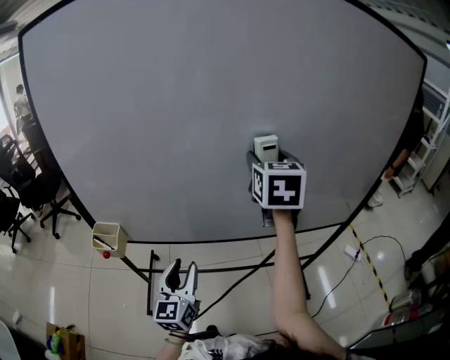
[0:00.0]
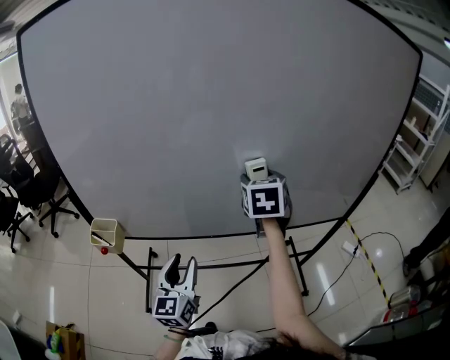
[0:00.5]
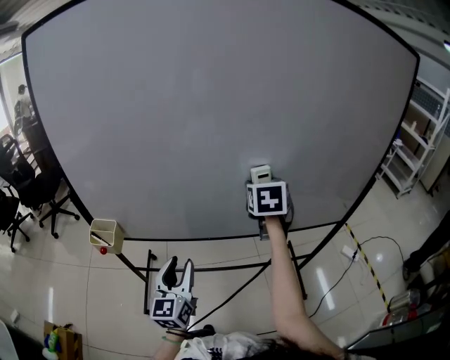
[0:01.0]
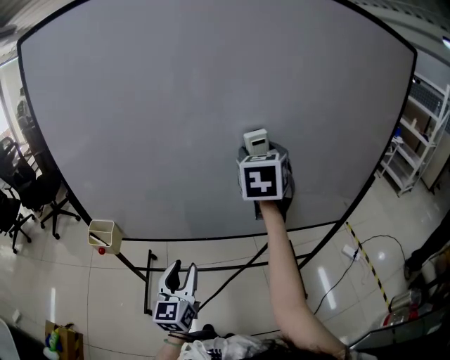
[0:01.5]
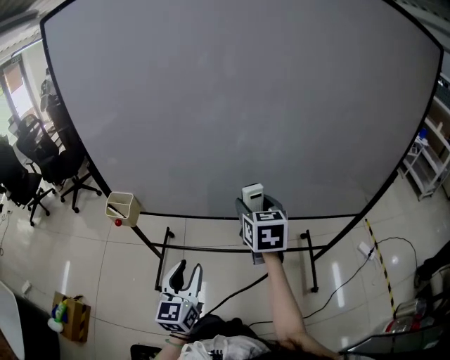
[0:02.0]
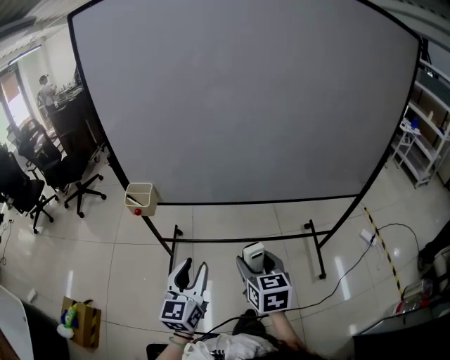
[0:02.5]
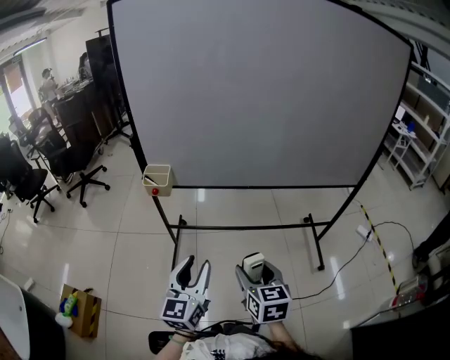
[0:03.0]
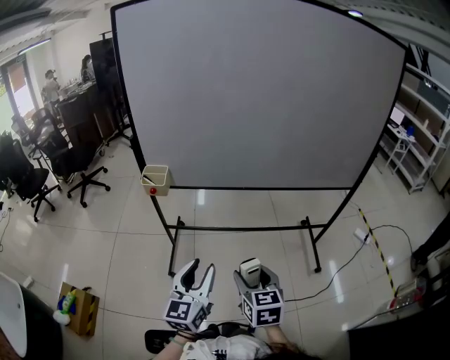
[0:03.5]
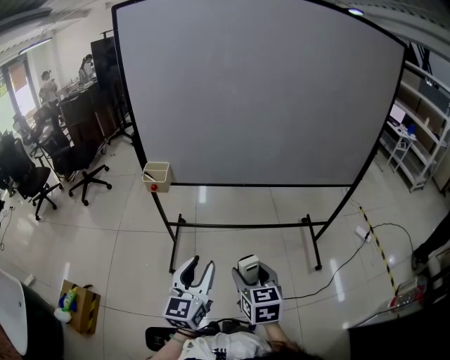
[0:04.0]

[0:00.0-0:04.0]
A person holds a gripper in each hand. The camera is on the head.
0:00.0 to 0:02.0: The left gripper heads backward, covering approximately 10 cm; the right gripper moves up and down over about 20 cm, changing direction 2 times.
0:02.0 to 0:04.0: The right gripper travels backward by some 40 cm. The left gripper heads backward, covering about 20 cm.

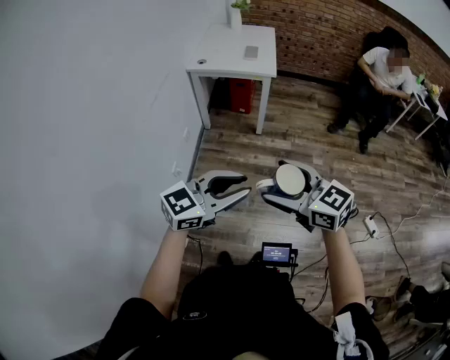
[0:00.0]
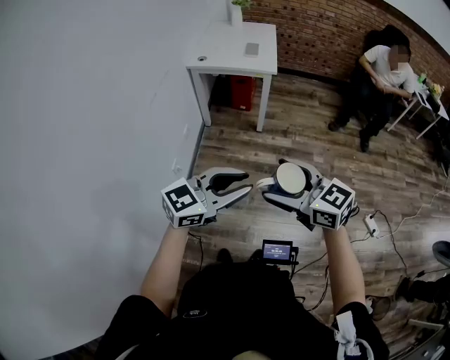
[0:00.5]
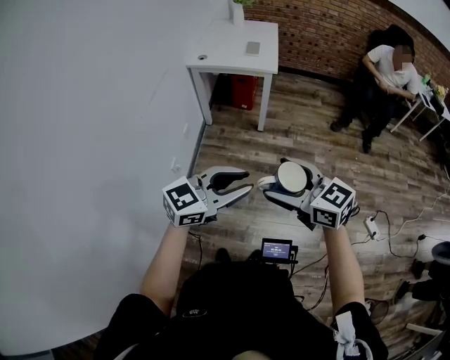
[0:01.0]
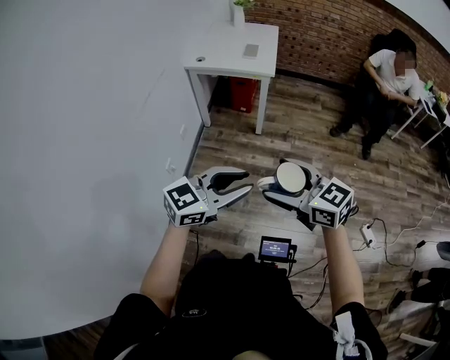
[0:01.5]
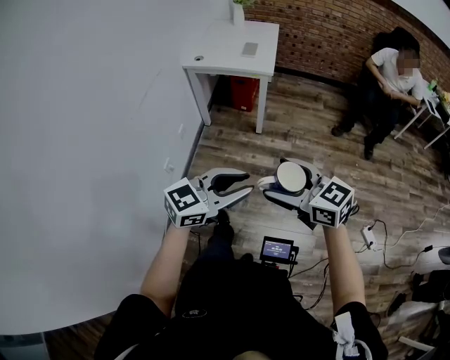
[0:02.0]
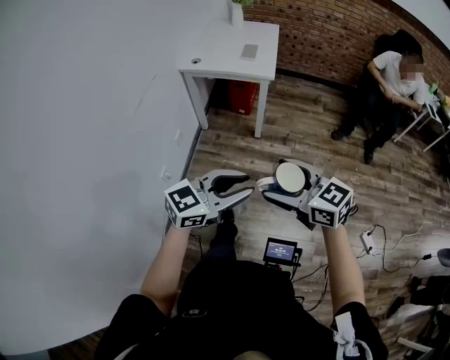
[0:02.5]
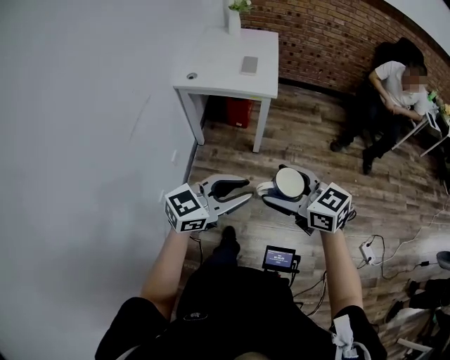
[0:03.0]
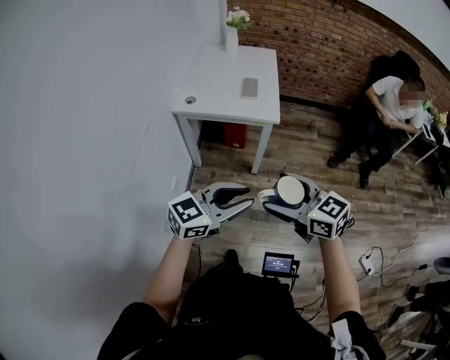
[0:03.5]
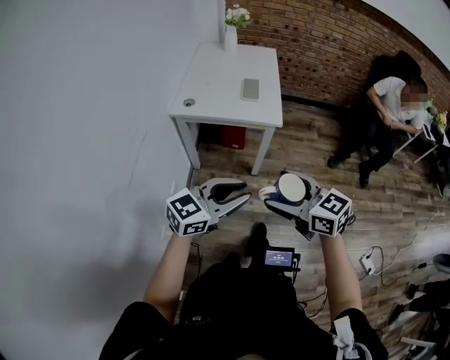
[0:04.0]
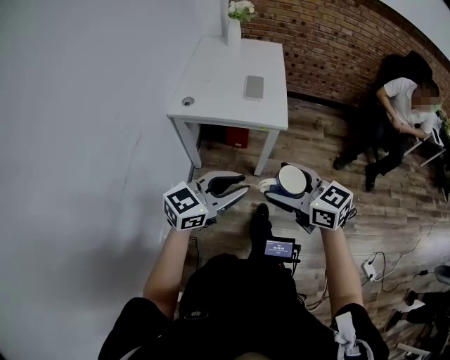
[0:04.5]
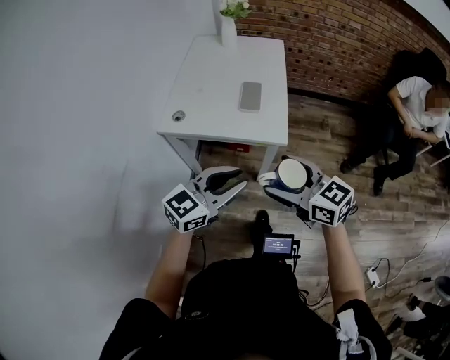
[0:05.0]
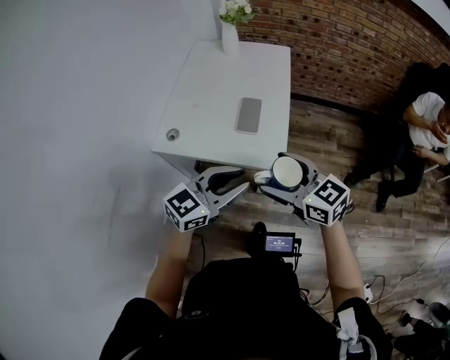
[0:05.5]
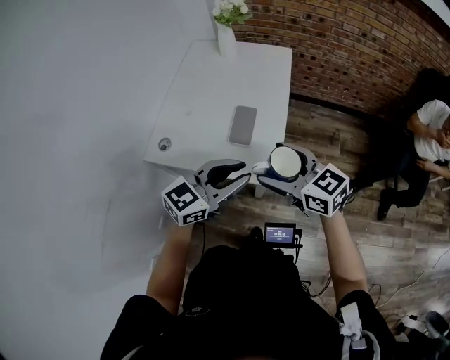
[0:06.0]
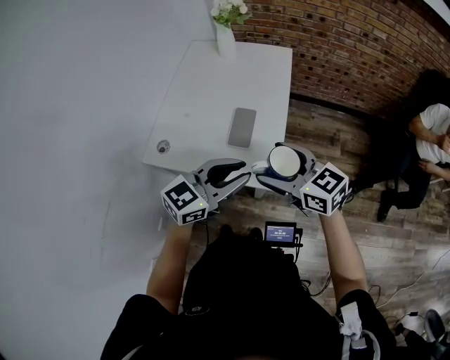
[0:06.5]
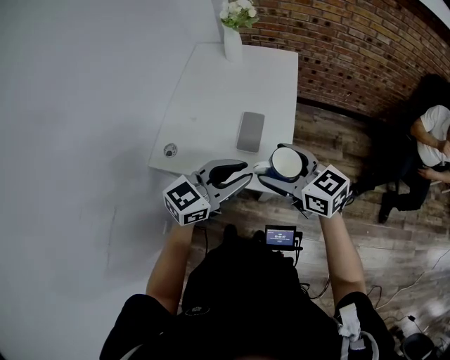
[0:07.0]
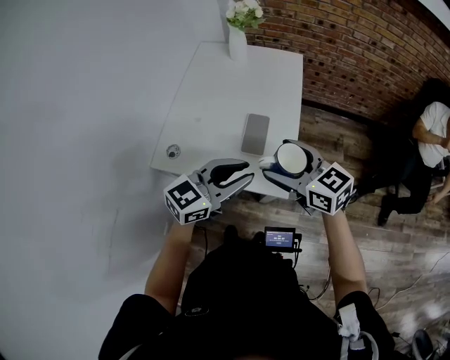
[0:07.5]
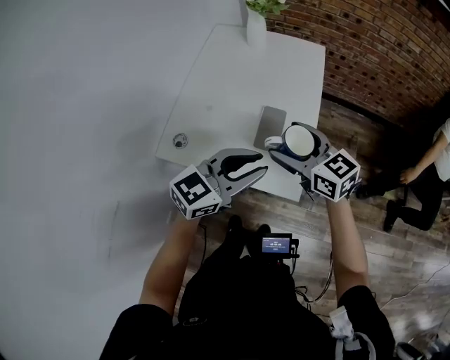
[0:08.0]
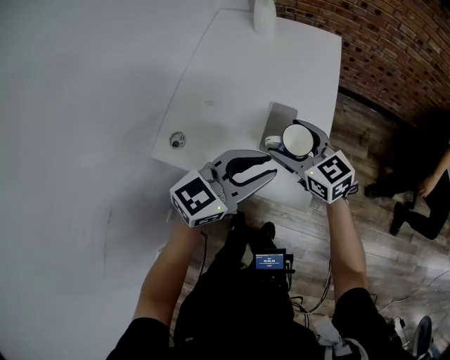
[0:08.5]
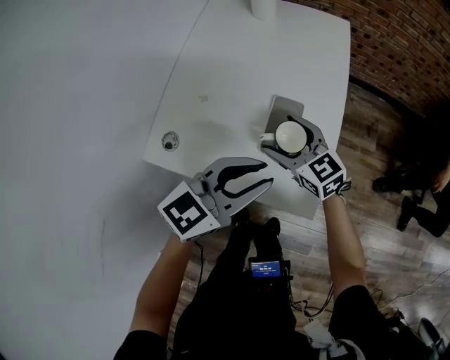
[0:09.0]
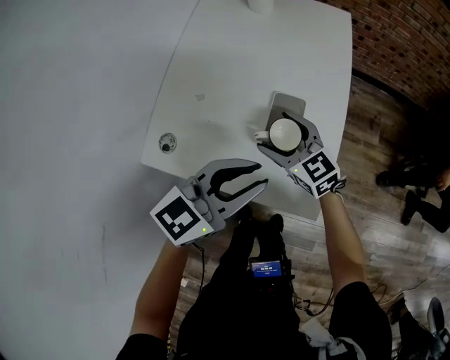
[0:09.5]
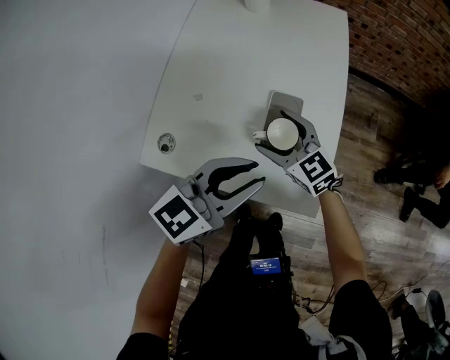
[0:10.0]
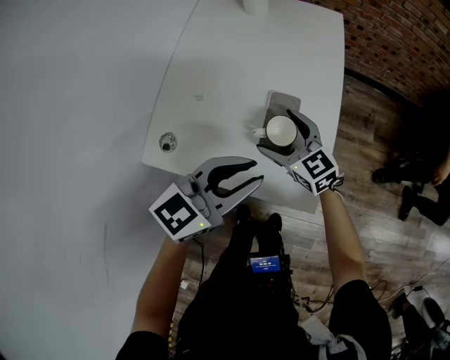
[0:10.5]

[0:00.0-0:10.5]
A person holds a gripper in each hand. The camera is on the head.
0:00.0 to 0:02.0: The two grippers go some 10 cm to the right.
0:02.0 to 0:04.0: Both grippers travel together forward and to the left, some 35 cm.
0:04.0 to 0:06.5: Both grippers are carried forward, approximately 40 cm.
0:06.5 to 0:08.5: The left gripper heads forward and to the left, covering approximately 10 cm; the right gripper moves forward, downward and to the left, roughly 20 cm.
0:08.5 to 0:10.5: The left gripper ends up some 5 cm from where it was, while the right gripper is displaced downward and forward by some 10 cm.

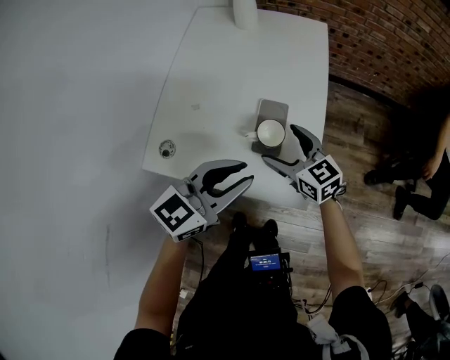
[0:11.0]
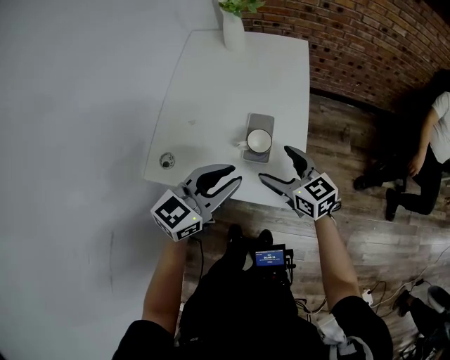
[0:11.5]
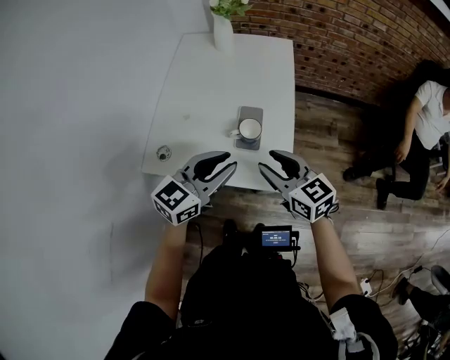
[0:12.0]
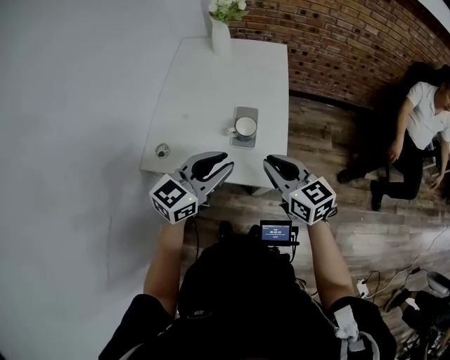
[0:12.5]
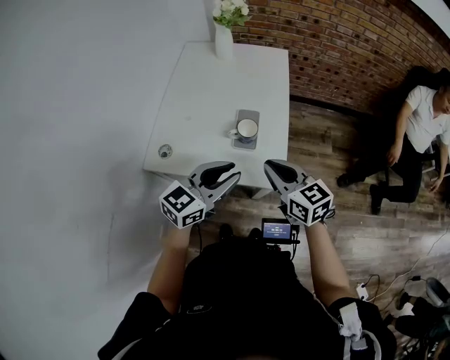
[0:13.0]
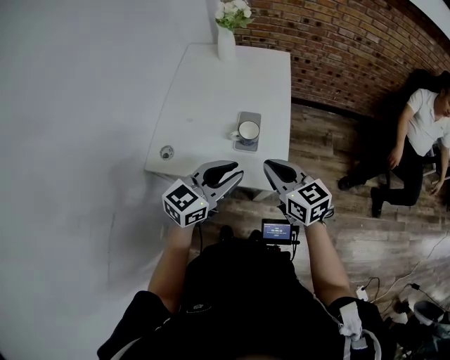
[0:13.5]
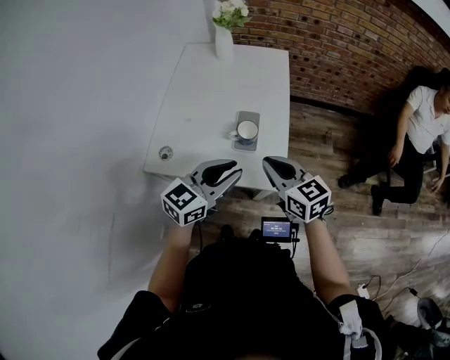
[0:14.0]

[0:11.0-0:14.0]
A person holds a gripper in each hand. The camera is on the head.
0:11.0 to 0:12.5: The right gripper moves upward and backward, about 20 cm, and closes. The left gripper moves upward and backward, about 10 cm.
0:12.5 to 0:14.0: The grippers stay close to where they were, moving slightly.

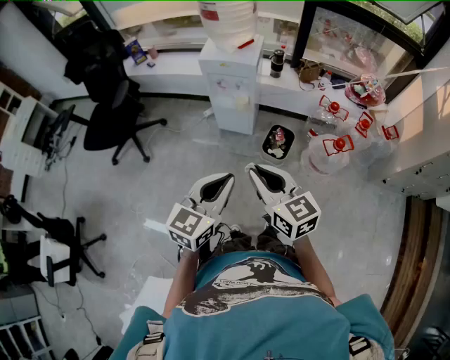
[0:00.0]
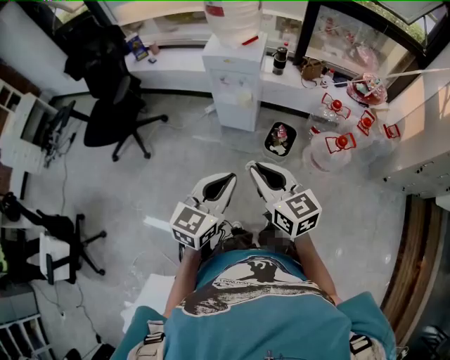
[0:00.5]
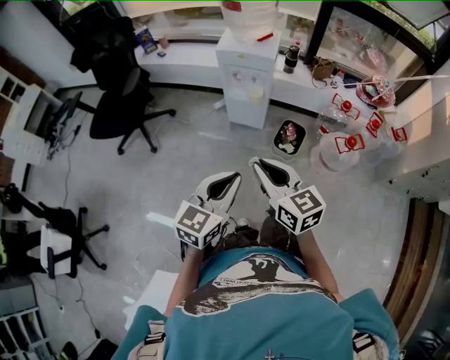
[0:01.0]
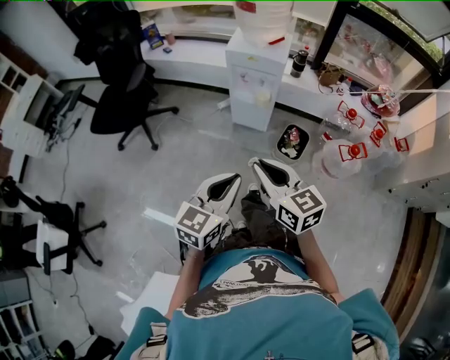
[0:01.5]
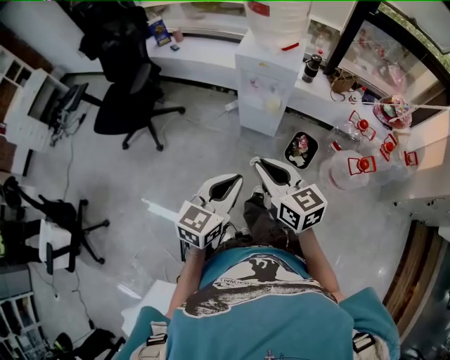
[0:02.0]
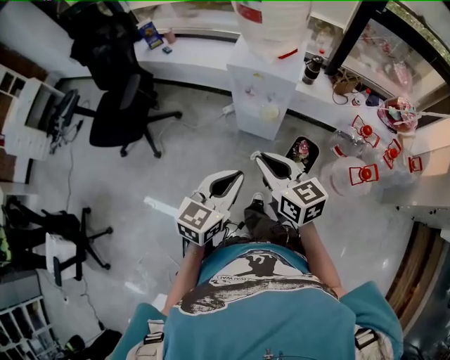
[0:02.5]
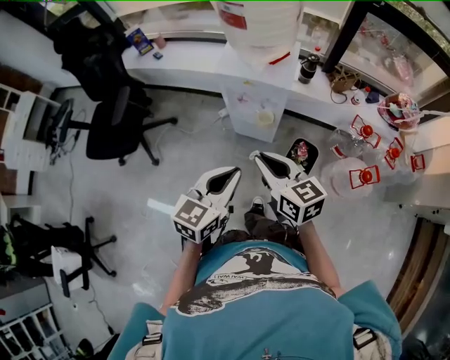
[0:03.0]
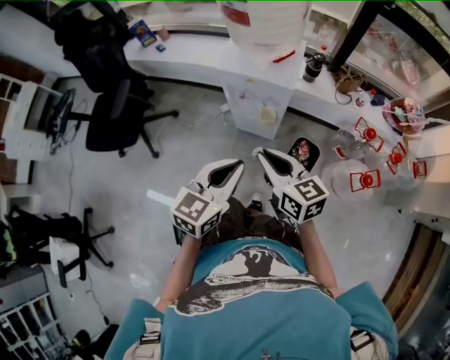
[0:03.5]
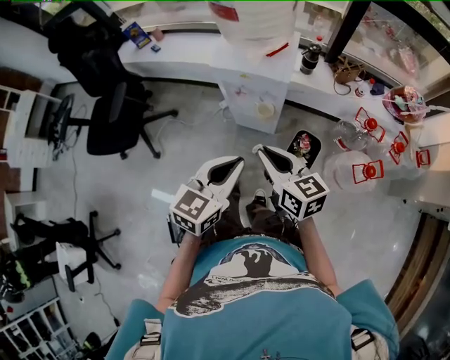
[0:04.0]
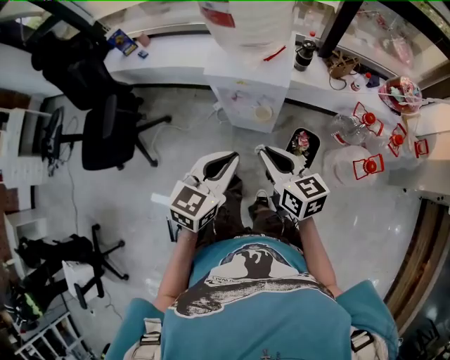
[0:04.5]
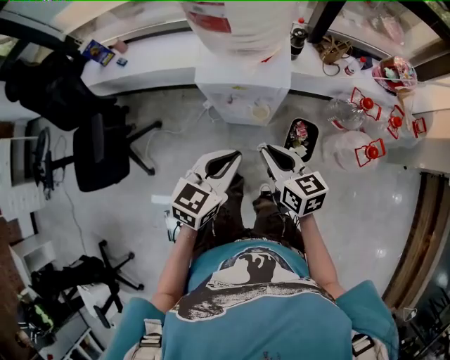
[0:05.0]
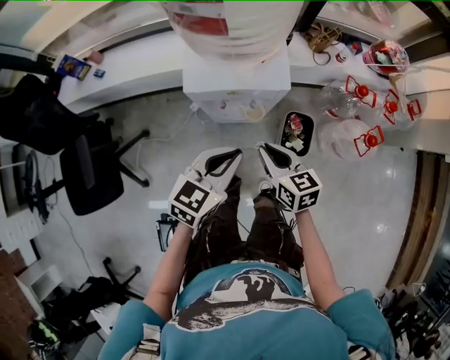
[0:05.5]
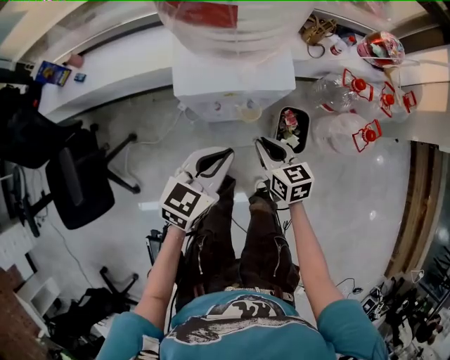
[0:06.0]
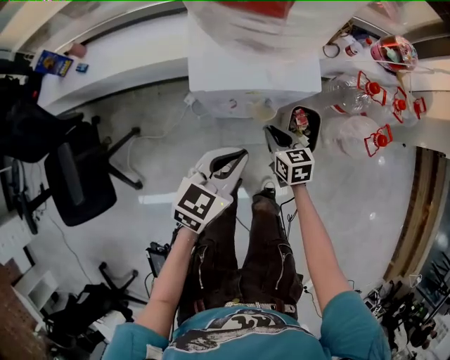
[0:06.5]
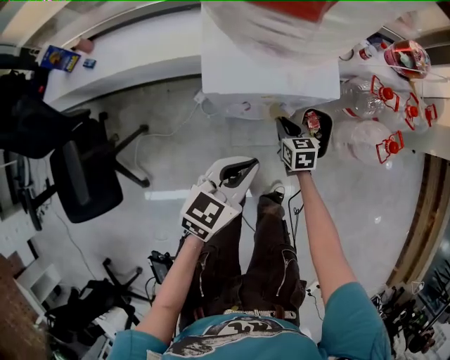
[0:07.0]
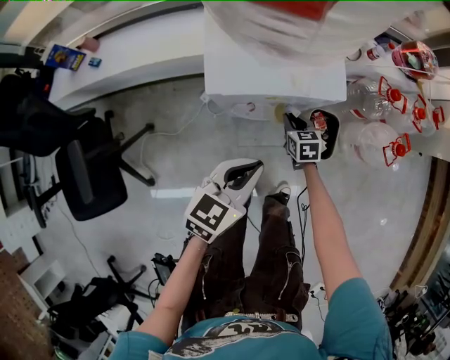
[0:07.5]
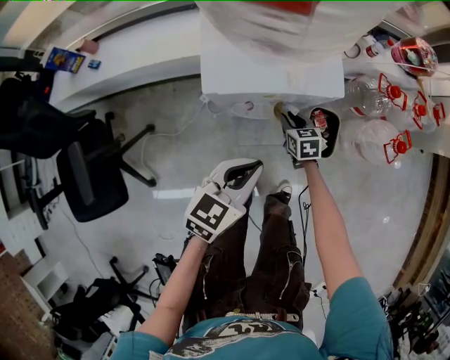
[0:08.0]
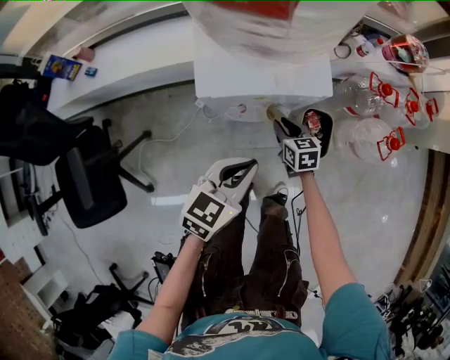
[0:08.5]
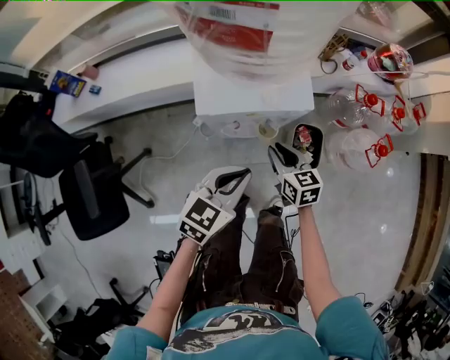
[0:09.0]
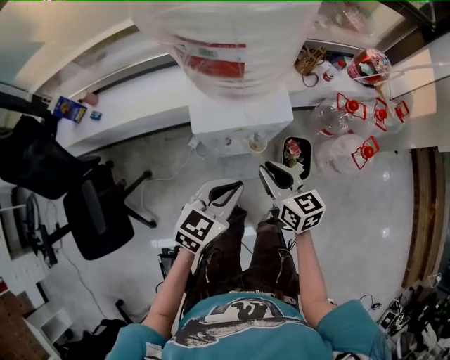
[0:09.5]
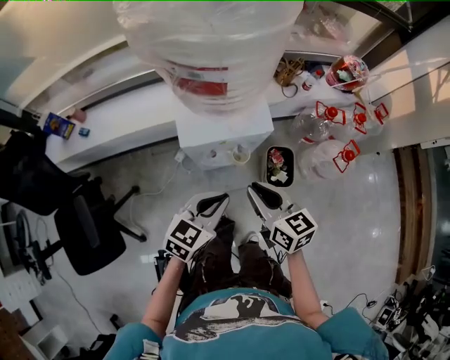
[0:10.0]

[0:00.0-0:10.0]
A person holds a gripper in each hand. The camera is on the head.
0:00.0 to 0:02.0: Both grippers travel together to the left and forward, roughly 10 cm.
0:02.0 to 0:04.0: The grippers both shift forward by roughly 20 cm.
0:04.0 to 0:06.0: The right gripper shifts approximately 20 cm downward, and turns by approximately 30 degrees, while the left gripper changes place by about 20 cm, and turns by about 30 degrees.
0:06.0 to 0:08.0: The left gripper heads downward, covering roughly 5 cm. The right gripper is displaced downward and forward by about 20 cm.
0:08.0 to 0:10.0: The right gripper moves upward and backward, about 35 cm, and swivels approximately 30 degrees. Meanwhile the left gripper heads upward, covering some 10 cm.
